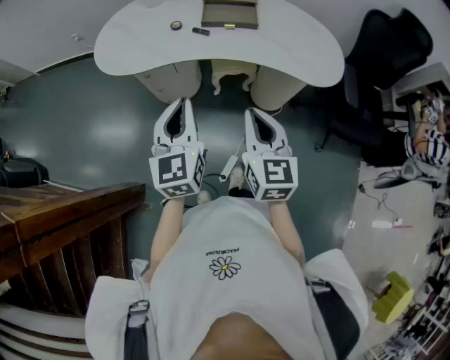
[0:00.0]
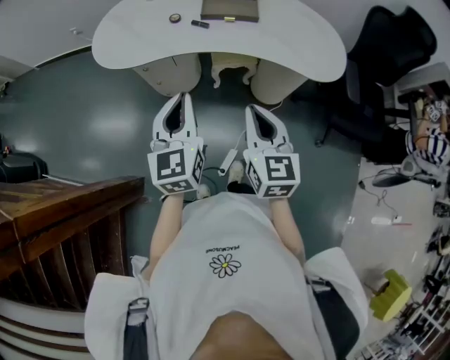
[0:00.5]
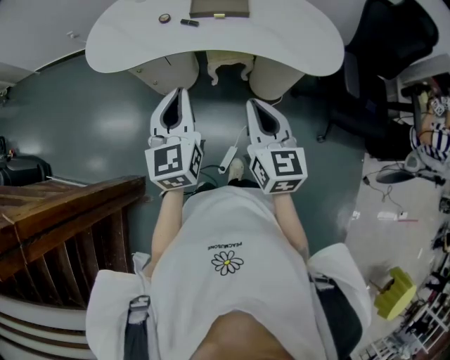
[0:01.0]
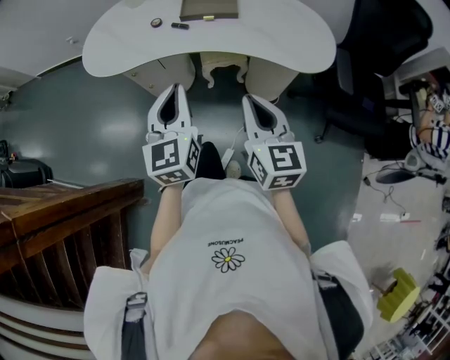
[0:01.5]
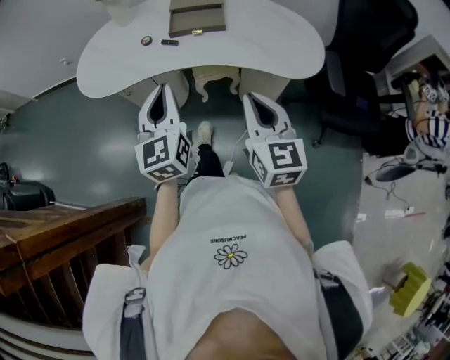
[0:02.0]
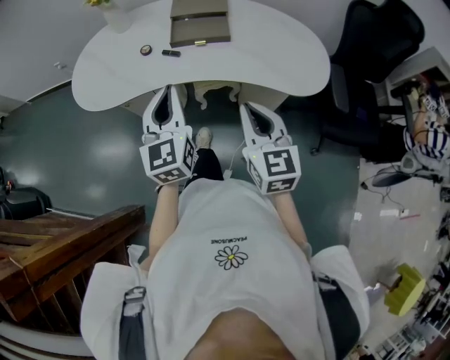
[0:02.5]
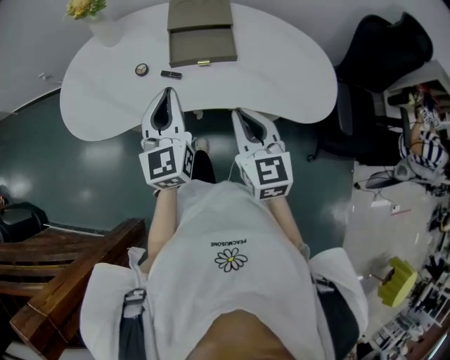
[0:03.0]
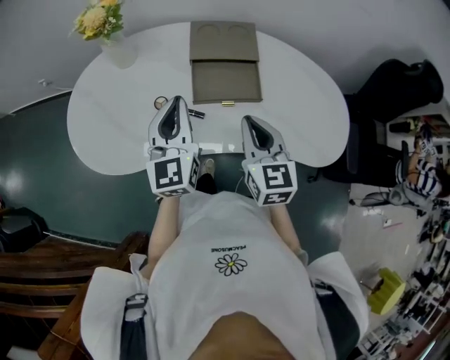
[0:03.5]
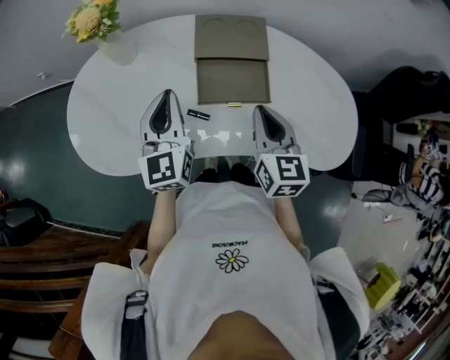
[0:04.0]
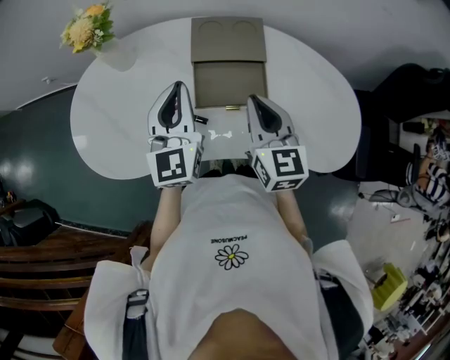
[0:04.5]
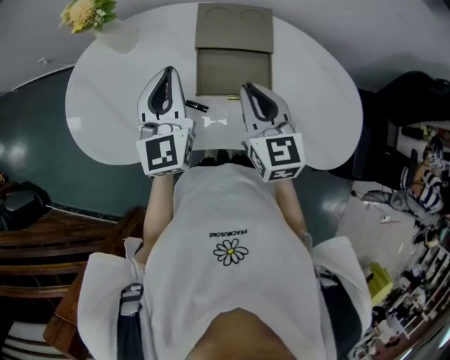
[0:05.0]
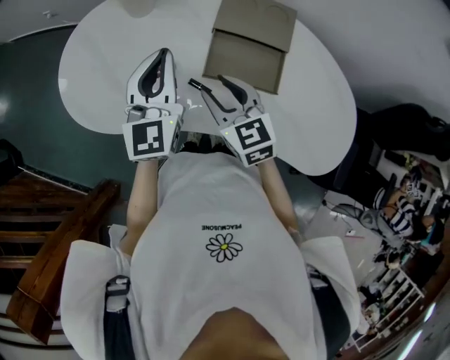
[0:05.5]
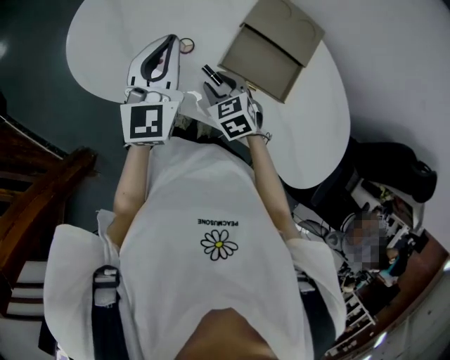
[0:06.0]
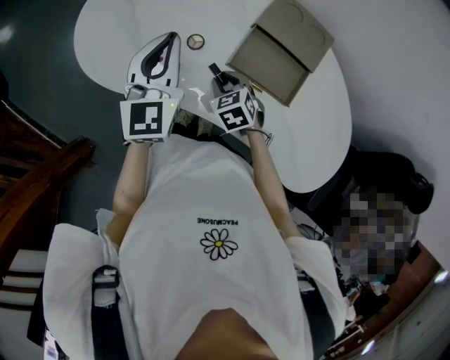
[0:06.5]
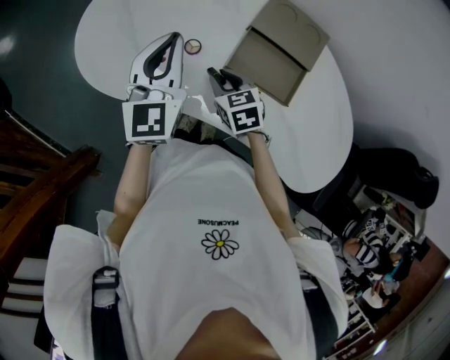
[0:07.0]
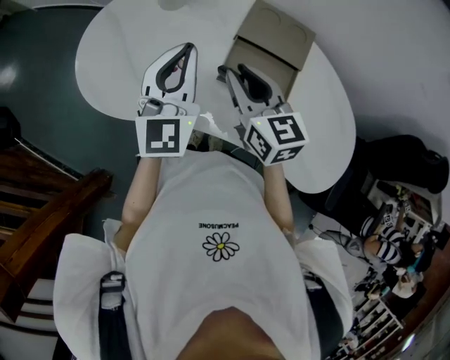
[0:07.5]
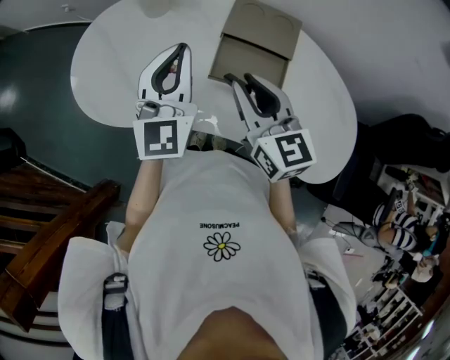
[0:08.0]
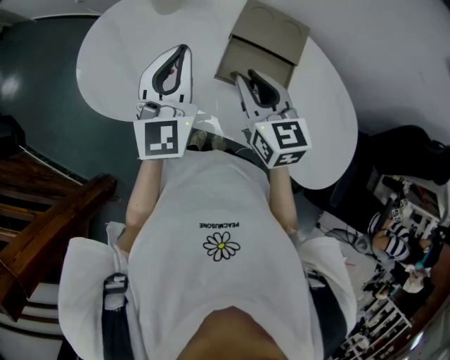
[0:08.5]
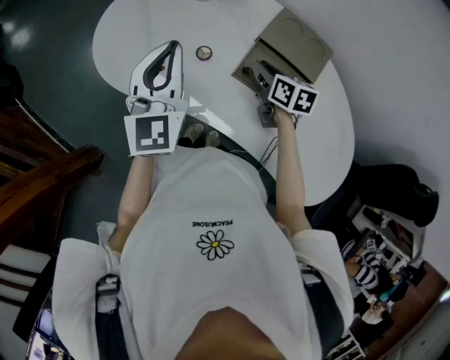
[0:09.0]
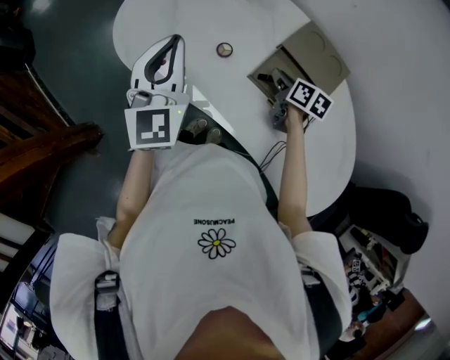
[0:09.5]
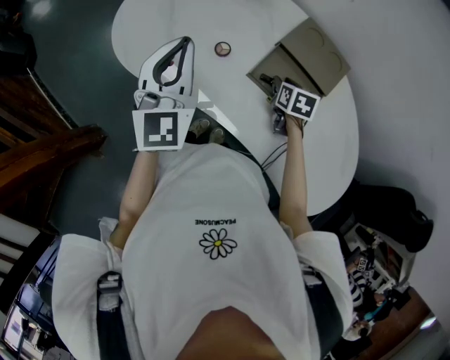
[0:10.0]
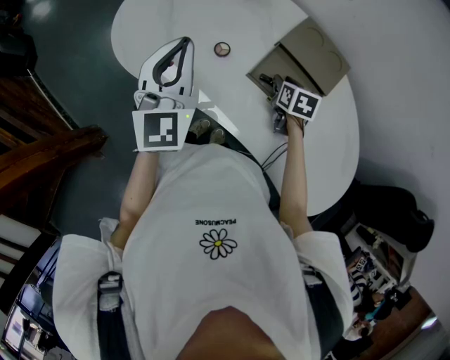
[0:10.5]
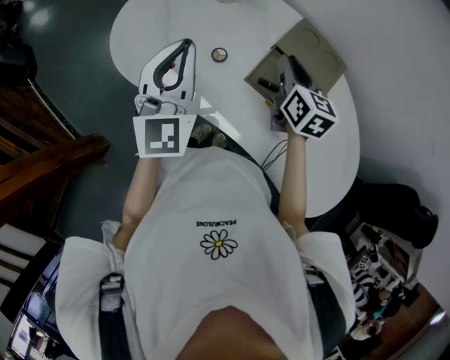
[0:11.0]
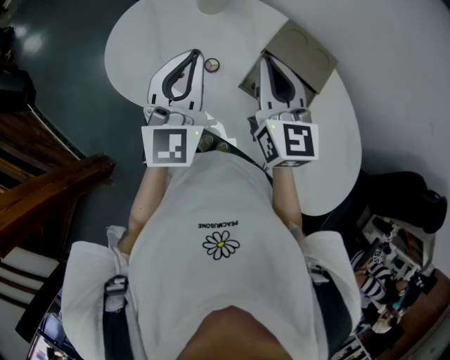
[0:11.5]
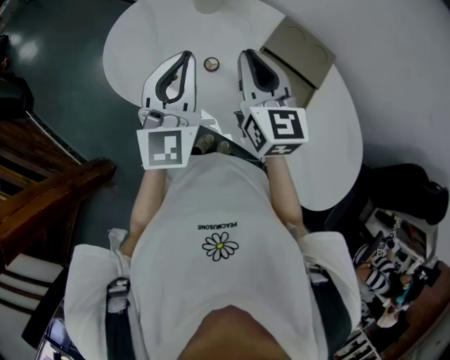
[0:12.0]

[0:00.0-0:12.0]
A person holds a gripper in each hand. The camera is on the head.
0:00.0 to 0:02.0: The right gripper goes about 10 cm to the right. The left gripper heads to the right and forward, covering about 10 cm.
0:02.0 to 0:04.0: Both grippers travel together forward, approximately 35 cm.
0:04.0 to 0:06.0: The right gripper goes some 20 cm downward, rotates some 60 degrees, and opens; the left gripper changes place by some 5 cm.
0:06.0 to 0:08.0: The left gripper is displaced upward and to the right by approximately 10 cm, while the right gripper moves upward, some 25 cm, and angles its fingers upward, by some 40 degrees.
0:08.0 to 0:10.0: The right gripper goes roughly 25 cm downward, and tips its fingers downward by roughly 40 degrees, while the left gripper heads to the left, covering approximately 10 cm, and turns by some 20 degrees.
0:10.0 to 0:12.0: The right gripper is displaced upward and to the left by some 30 cm, angles its fingers upward, by some 50 degrees, and closes.

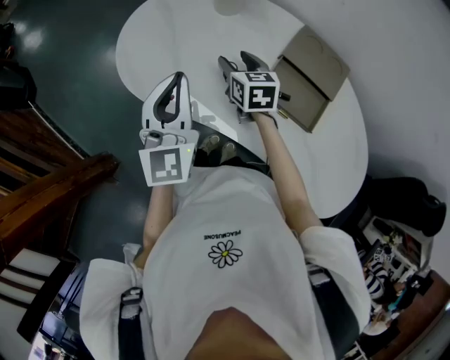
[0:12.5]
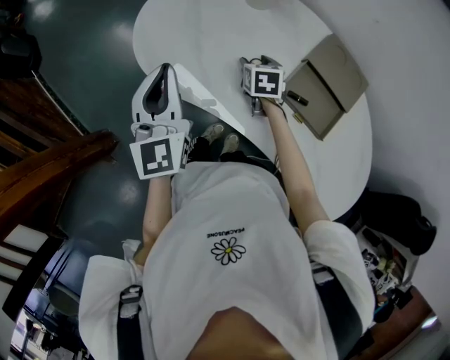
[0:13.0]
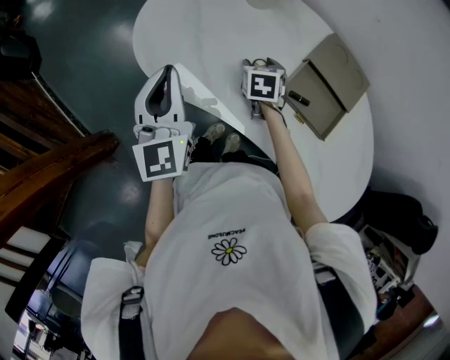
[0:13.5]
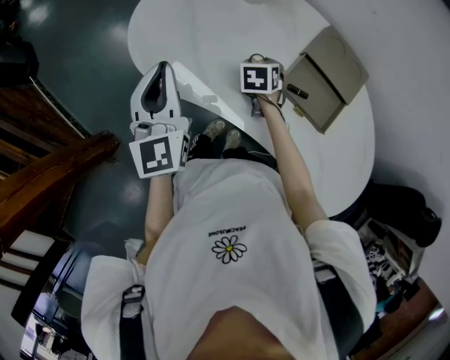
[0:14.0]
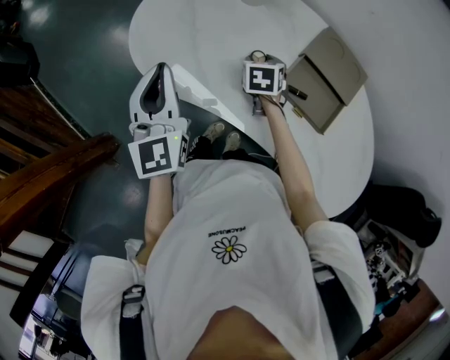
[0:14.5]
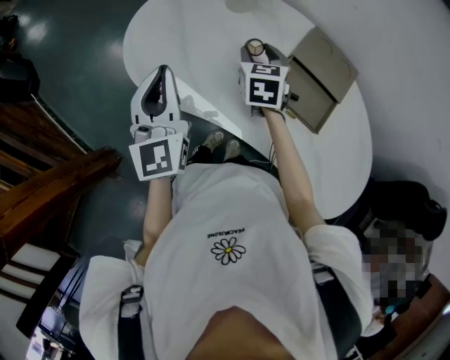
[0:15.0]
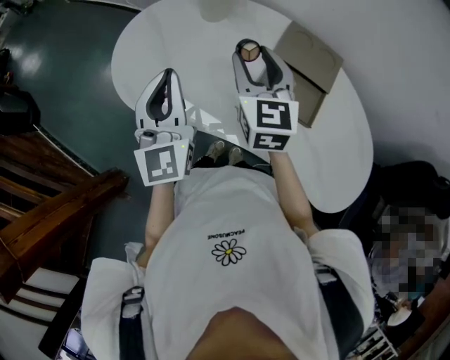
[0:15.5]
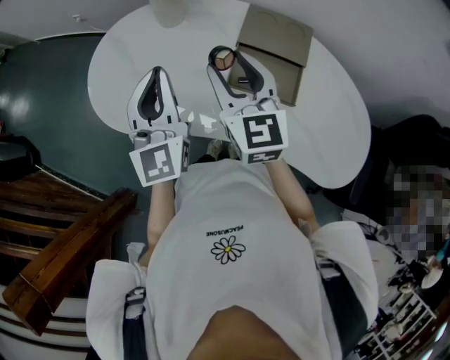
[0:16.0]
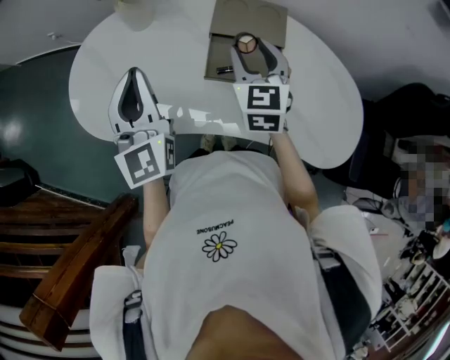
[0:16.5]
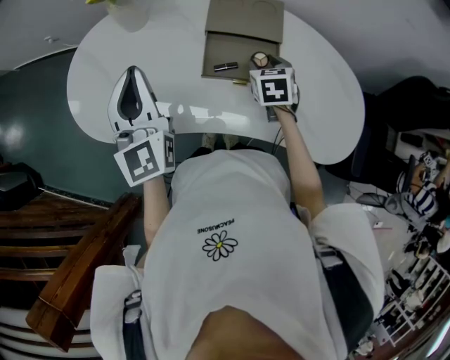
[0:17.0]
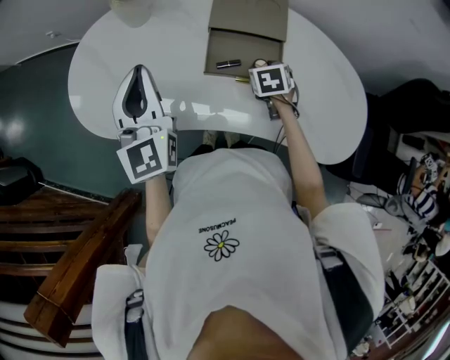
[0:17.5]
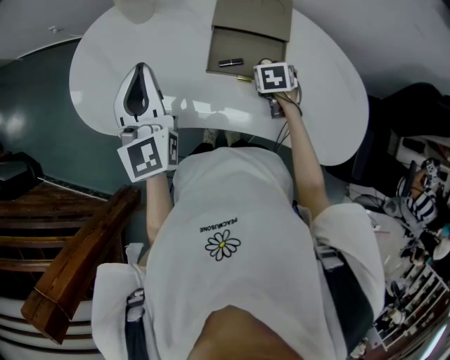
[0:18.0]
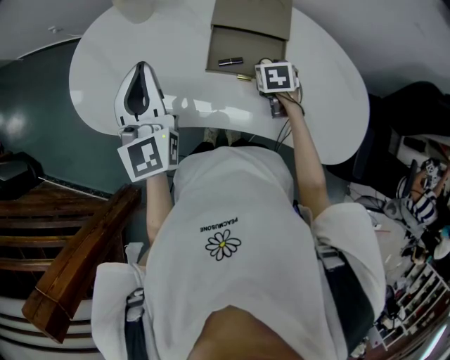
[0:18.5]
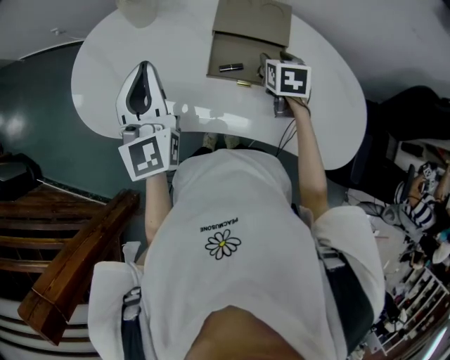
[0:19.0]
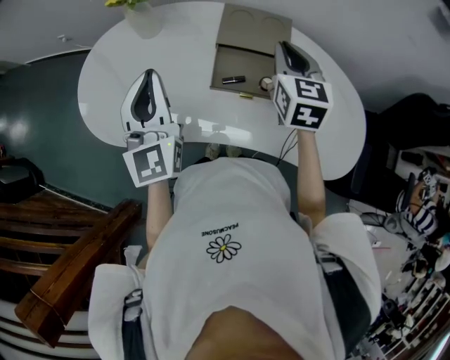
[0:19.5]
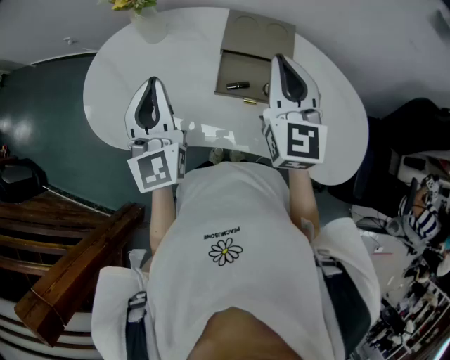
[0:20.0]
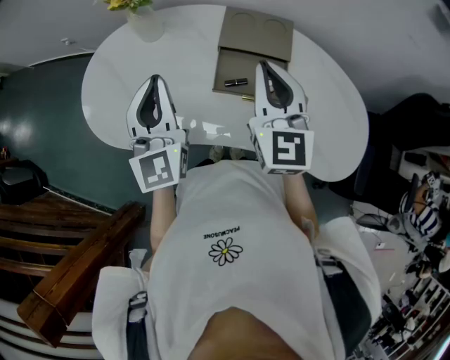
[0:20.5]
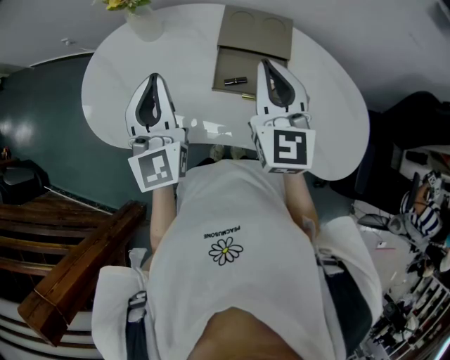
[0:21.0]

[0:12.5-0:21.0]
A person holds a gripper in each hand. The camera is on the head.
0:12.5 to 0:14.5: The left gripper heads to the left, covering some 10 cm, while the right gripper moves downward, about 10 cm, and rotates approximately 20 degrees.
0:14.5 to 0:16.5: The right gripper is displaced to the right and upward by about 25 cm, and tips its fingers upward by about 30 degrees, while the left gripper travels to the right by about 20 cm, and changes its angle by approximately 20 degrees.
0:16.5 to 0:19.0: The right gripper is displaced downward and to the right by approximately 15 cm, and rotates approximately 30 degrees.
0:19.0 to 0:21.0: The right gripper moves upward and to the left, approximately 25 cm, tips its fingers upward by approximately 40 degrees, and closes up.

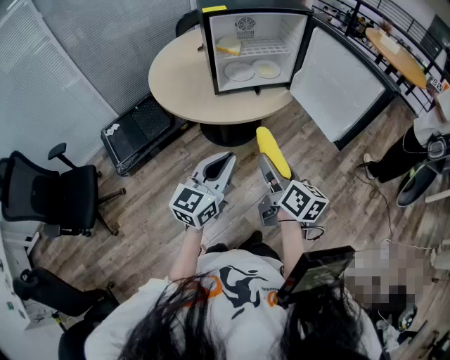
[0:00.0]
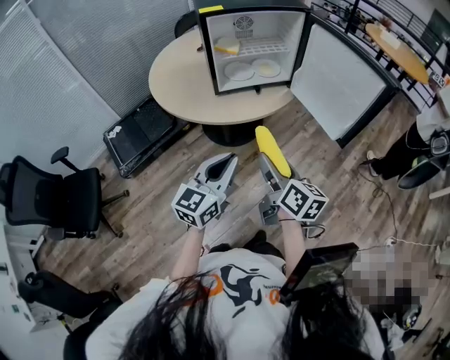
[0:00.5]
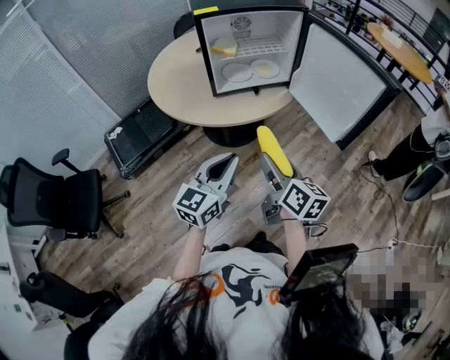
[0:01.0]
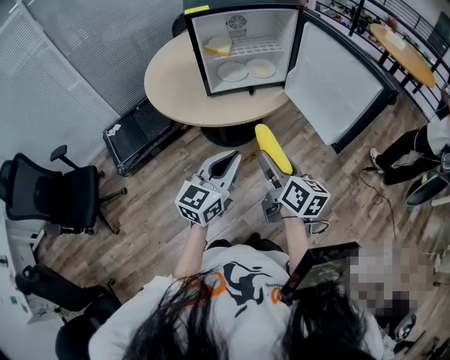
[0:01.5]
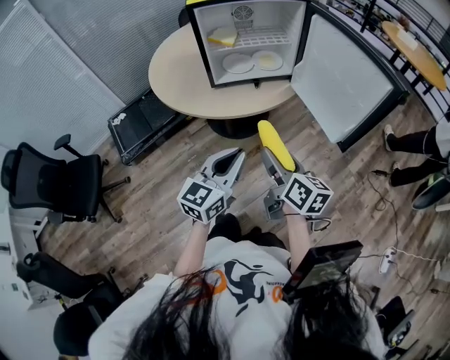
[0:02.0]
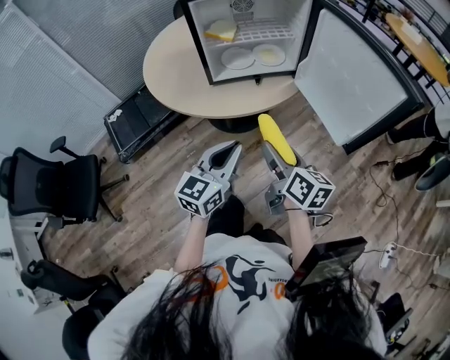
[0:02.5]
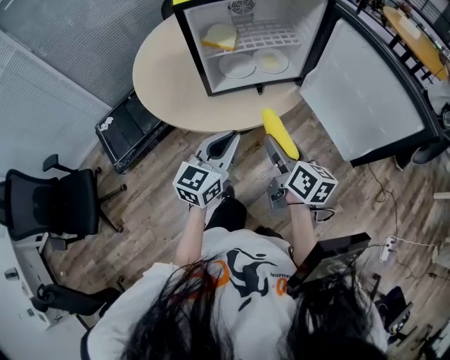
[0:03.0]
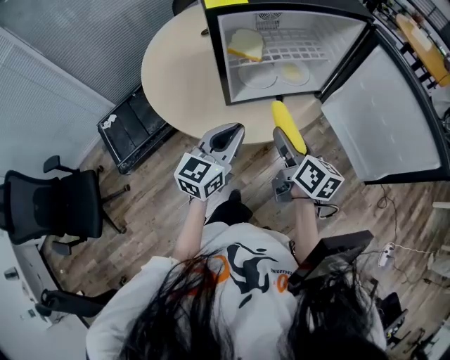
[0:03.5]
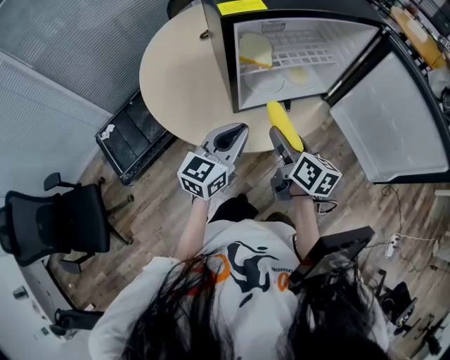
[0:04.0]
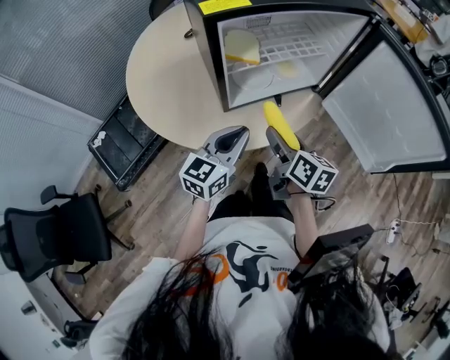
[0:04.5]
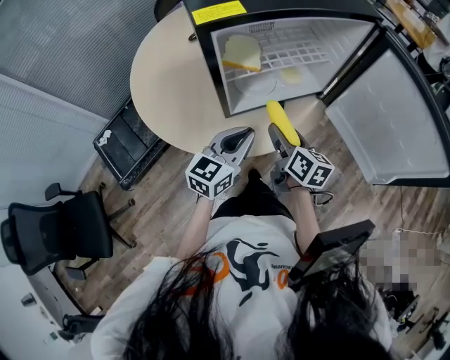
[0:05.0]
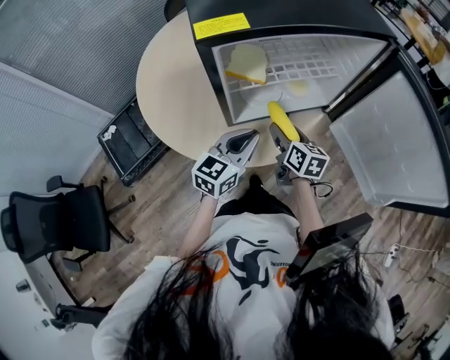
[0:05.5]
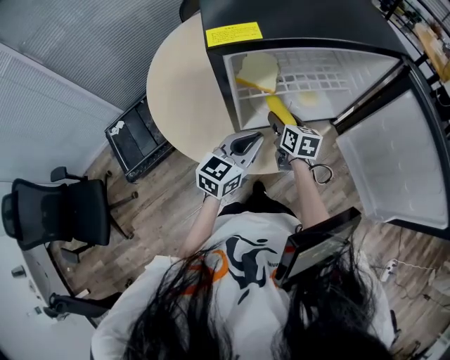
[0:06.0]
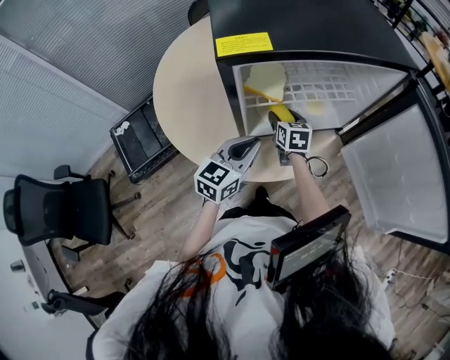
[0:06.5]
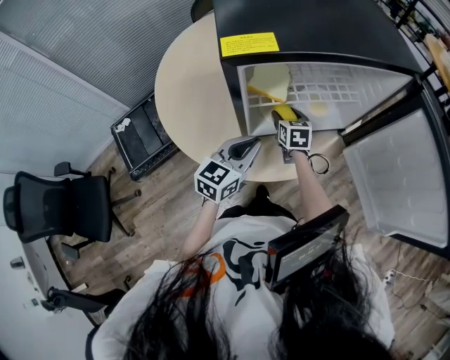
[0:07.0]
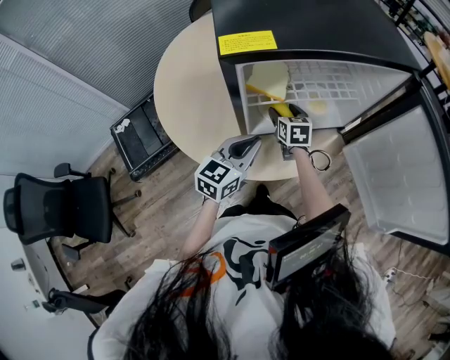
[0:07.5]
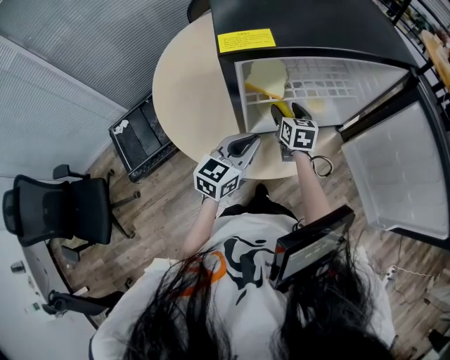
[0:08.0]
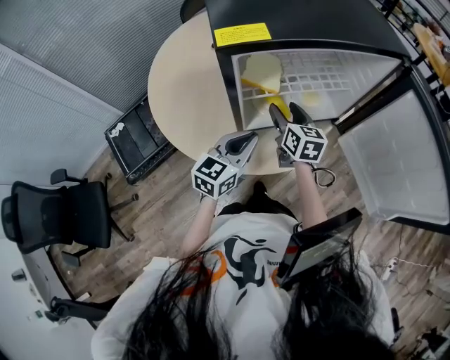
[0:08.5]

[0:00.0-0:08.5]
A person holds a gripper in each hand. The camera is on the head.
0:00.0 to 0:02.0: The left gripper heads to the right, covering about 10 cm, while the right gripper heads to the right and forward, covering roughly 10 cm.
0:02.0 to 0:04.0: The grippers both shift forward and to the left by approximately 30 cm.
0:04.0 to 0:06.5: The left gripper moves forward, approximately 10 cm. Meanwhile the right gripper goes about 25 cm forward and downward, and swivels about 30 degrees.
0:06.5 to 0:08.5: The right gripper is displaced upward by about 10 cm.
